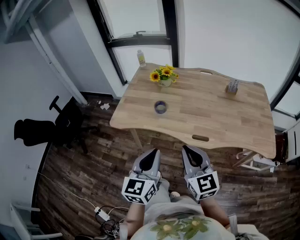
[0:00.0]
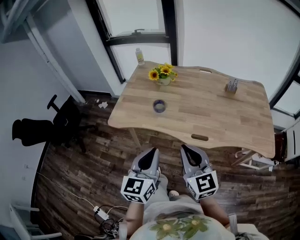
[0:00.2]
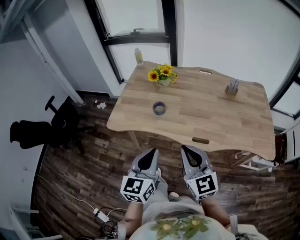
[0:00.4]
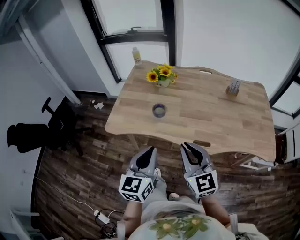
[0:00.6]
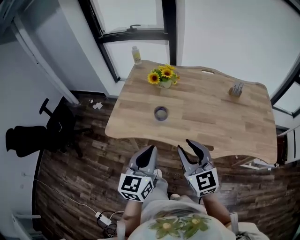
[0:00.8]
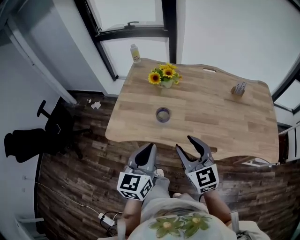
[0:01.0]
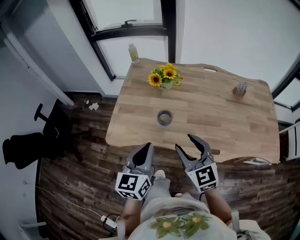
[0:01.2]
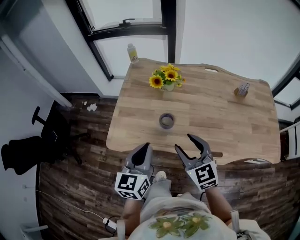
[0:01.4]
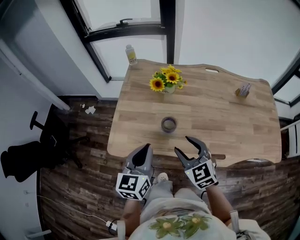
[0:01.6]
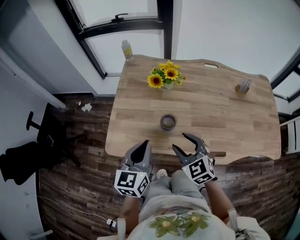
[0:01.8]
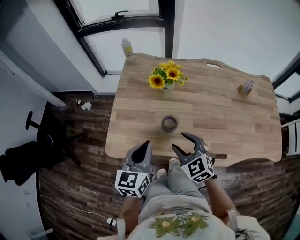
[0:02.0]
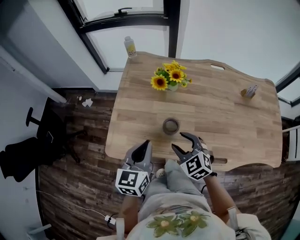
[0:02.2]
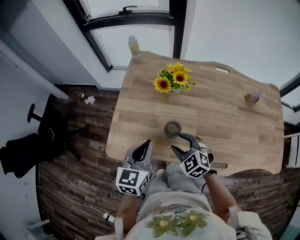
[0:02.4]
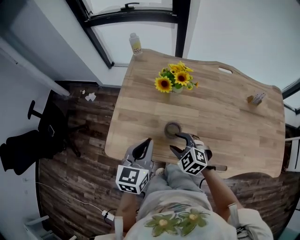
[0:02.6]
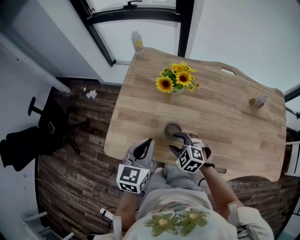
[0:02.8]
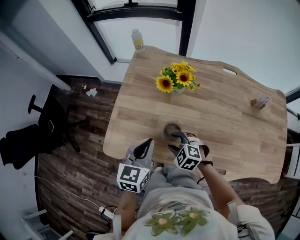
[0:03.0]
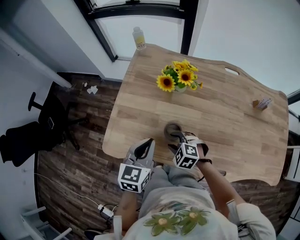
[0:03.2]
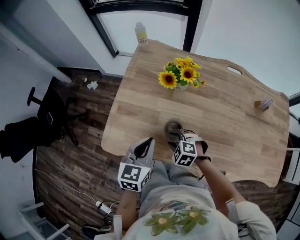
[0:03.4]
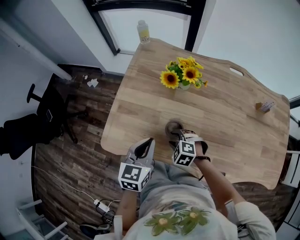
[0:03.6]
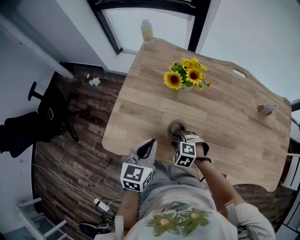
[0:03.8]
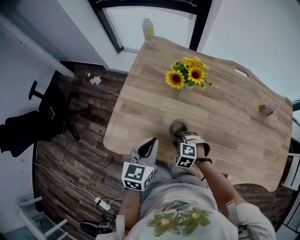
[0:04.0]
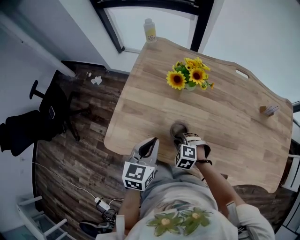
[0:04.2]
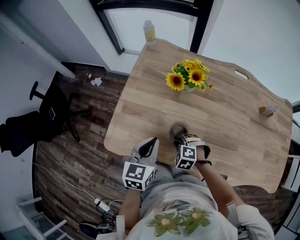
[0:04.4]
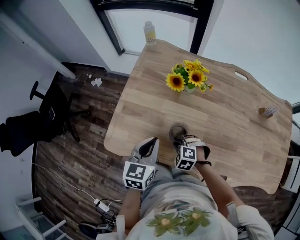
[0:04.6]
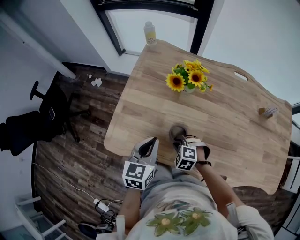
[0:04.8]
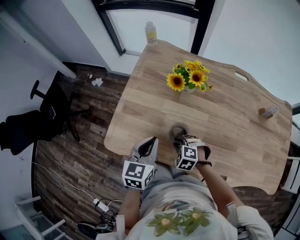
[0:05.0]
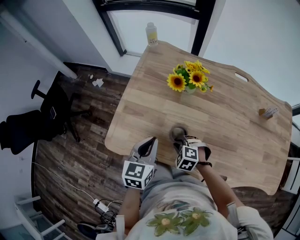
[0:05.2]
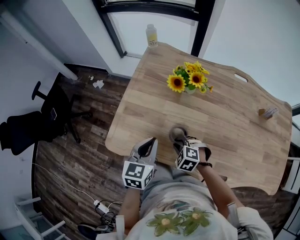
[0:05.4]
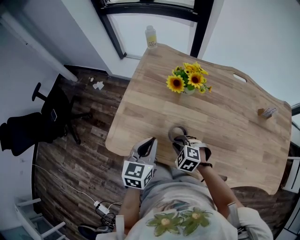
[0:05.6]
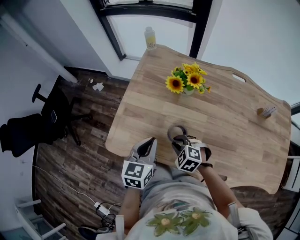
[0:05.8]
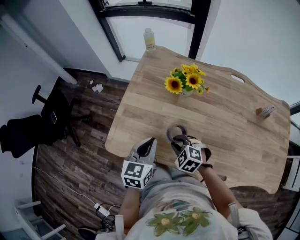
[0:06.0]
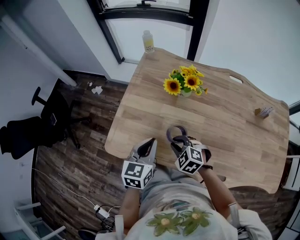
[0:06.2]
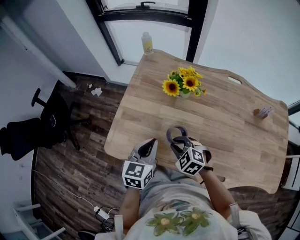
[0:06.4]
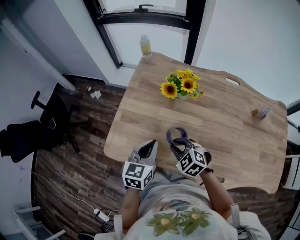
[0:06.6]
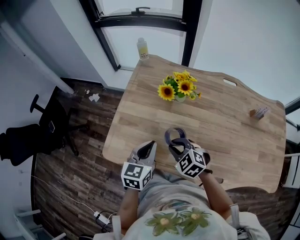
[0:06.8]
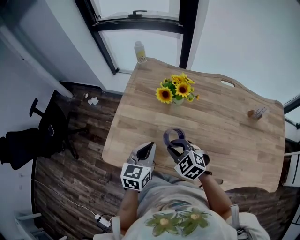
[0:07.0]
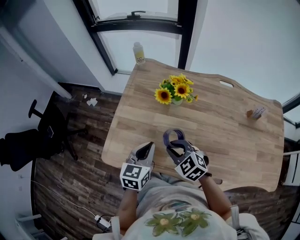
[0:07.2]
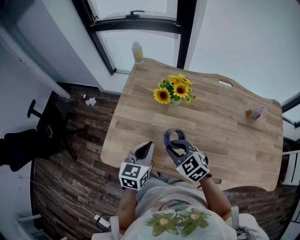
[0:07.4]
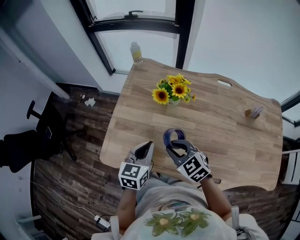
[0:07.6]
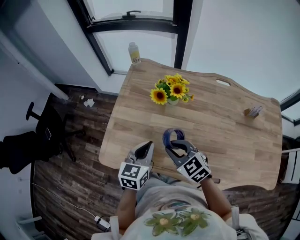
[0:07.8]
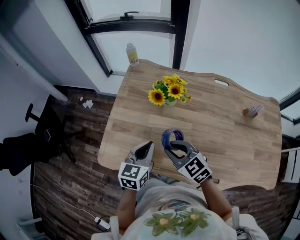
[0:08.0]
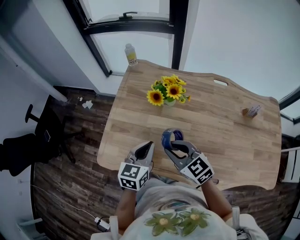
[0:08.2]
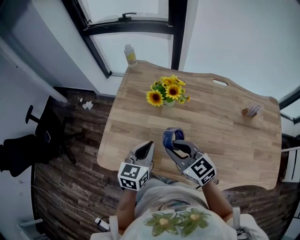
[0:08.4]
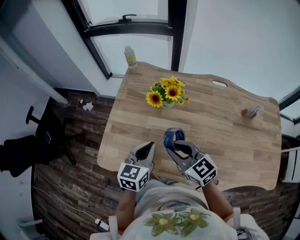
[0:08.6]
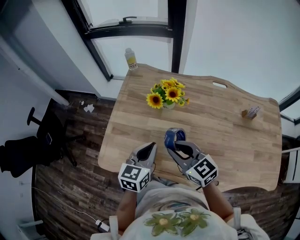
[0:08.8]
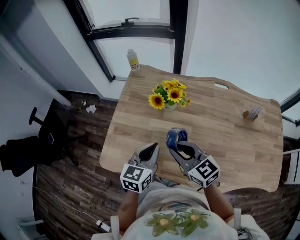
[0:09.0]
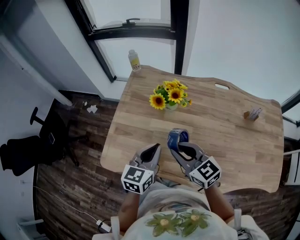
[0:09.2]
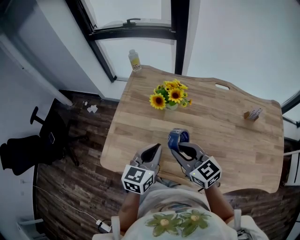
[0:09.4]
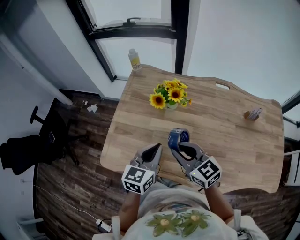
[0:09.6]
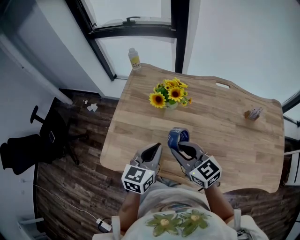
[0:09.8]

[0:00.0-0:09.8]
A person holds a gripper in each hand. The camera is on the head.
0:00.0 to 0:01.4: Both grippers move forward and to the left, roughly 25 cm. The right gripper opens its fingers.
0:01.4 to 0:02.8: The right gripper heads downward and forward, covering about 25 cm, and tips its fingers downward by about 30 degrees. Meanwhile the left gripper heads forward and downward, covering roughly 15 cm.
0:02.8 to 0:04.2: The left gripper travels downward by roughly 5 cm; the right gripper travels downward by some 10 cm, changes its angle by roughly 20 degrees, and closes.
0:04.2 to 0:05.6: The grippers make only small movements.
0:05.6 to 0:07.0: The right gripper moves upward, some 10 cm, and rotates approximately 20 degrees.
0:07.0 to 0:08.4: The right gripper moves upward, roughly 10 cm, and turns by some 30 degrees.
0:08.4 to 0:09.8: There are only small adjustments of the grippers.

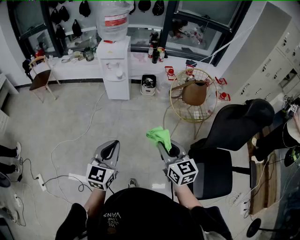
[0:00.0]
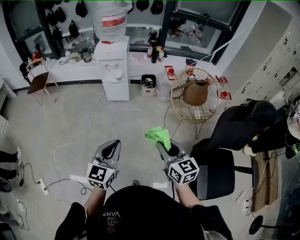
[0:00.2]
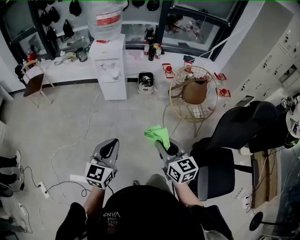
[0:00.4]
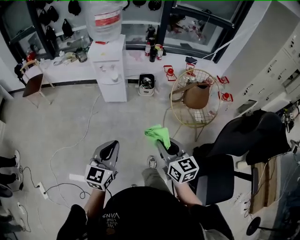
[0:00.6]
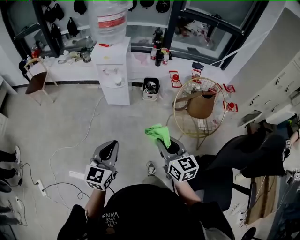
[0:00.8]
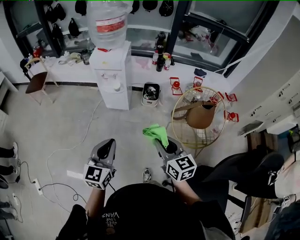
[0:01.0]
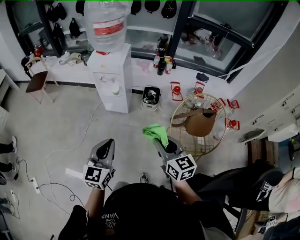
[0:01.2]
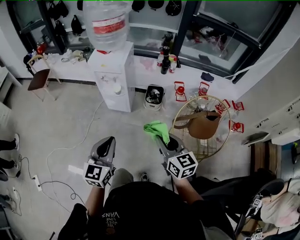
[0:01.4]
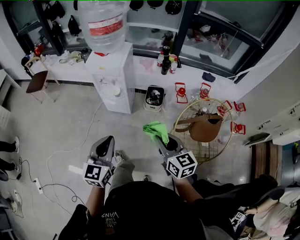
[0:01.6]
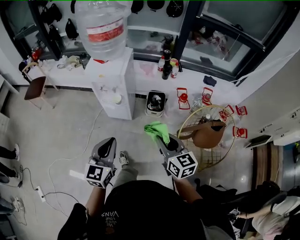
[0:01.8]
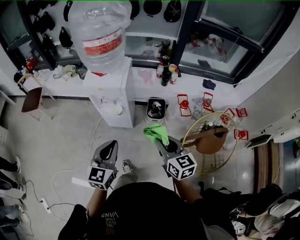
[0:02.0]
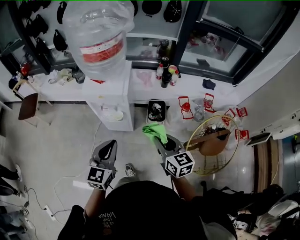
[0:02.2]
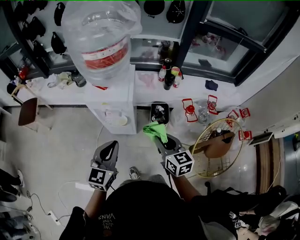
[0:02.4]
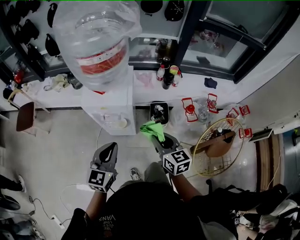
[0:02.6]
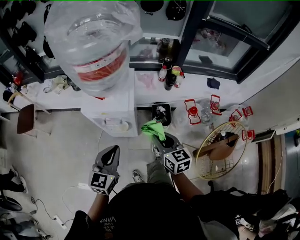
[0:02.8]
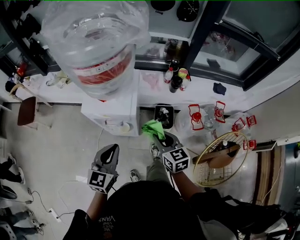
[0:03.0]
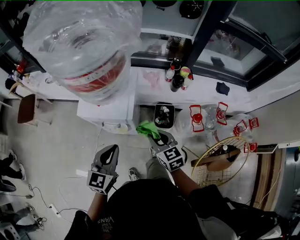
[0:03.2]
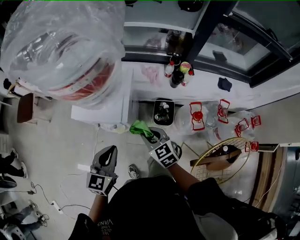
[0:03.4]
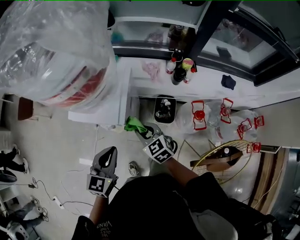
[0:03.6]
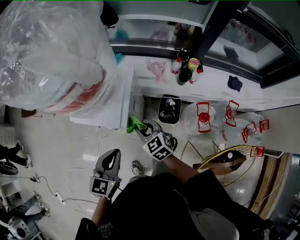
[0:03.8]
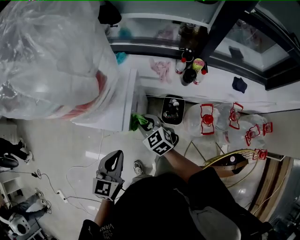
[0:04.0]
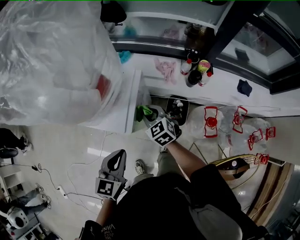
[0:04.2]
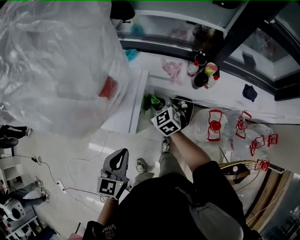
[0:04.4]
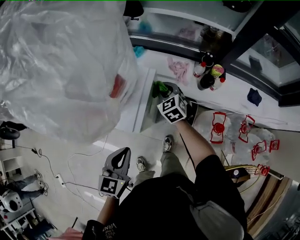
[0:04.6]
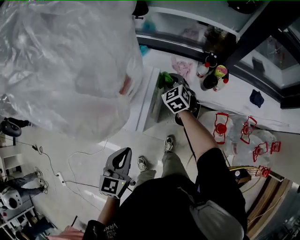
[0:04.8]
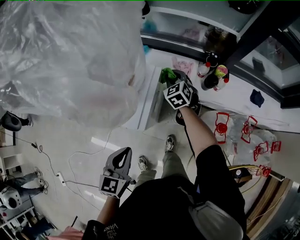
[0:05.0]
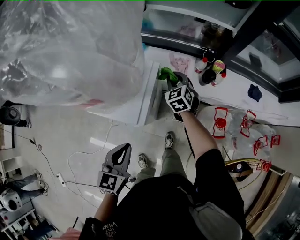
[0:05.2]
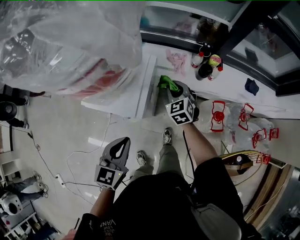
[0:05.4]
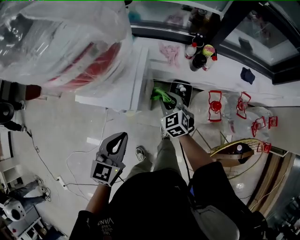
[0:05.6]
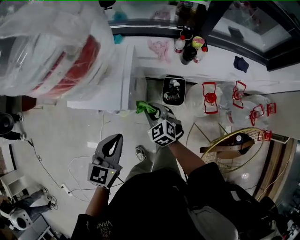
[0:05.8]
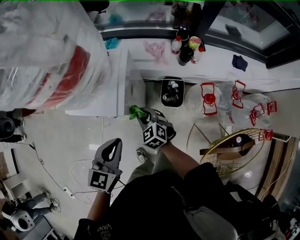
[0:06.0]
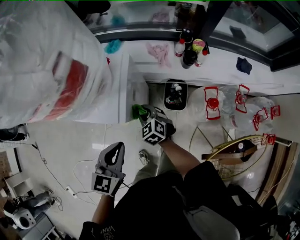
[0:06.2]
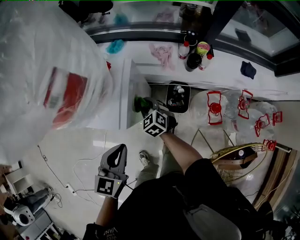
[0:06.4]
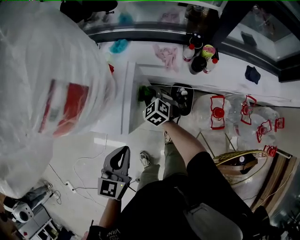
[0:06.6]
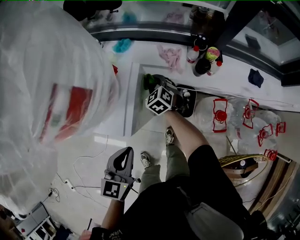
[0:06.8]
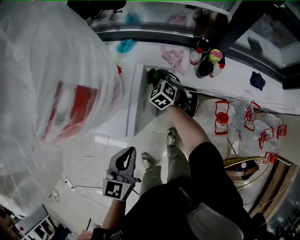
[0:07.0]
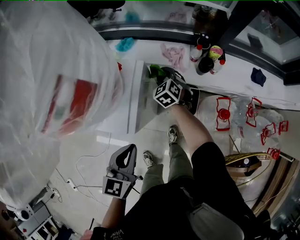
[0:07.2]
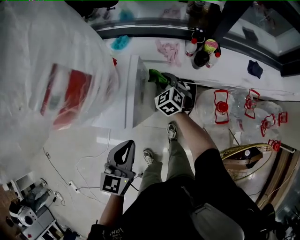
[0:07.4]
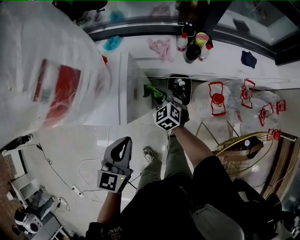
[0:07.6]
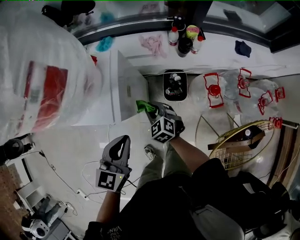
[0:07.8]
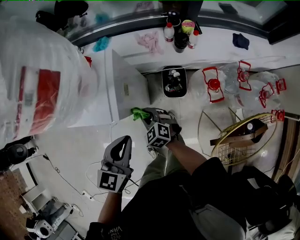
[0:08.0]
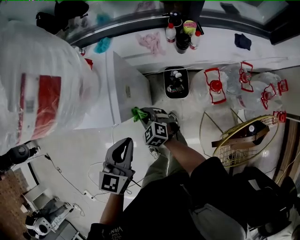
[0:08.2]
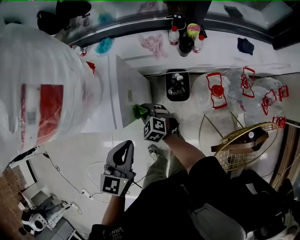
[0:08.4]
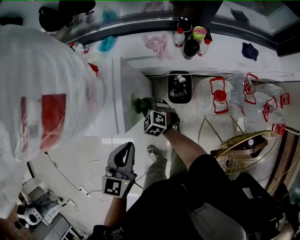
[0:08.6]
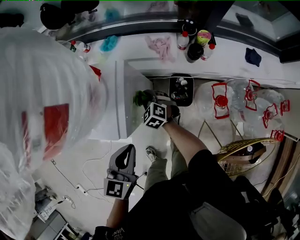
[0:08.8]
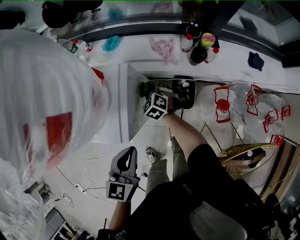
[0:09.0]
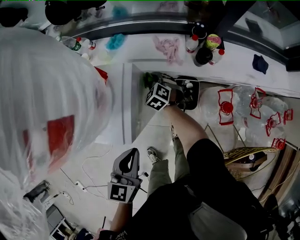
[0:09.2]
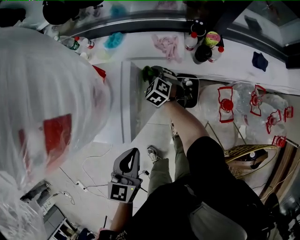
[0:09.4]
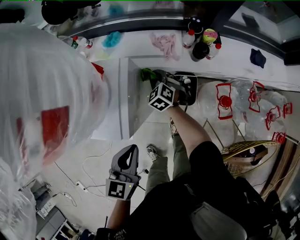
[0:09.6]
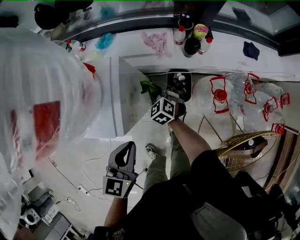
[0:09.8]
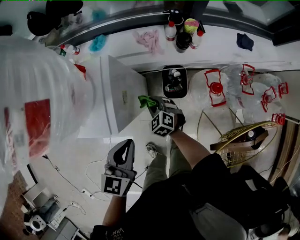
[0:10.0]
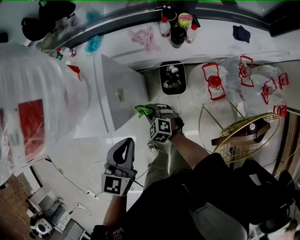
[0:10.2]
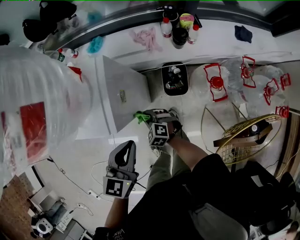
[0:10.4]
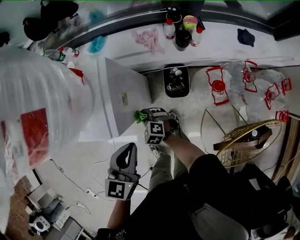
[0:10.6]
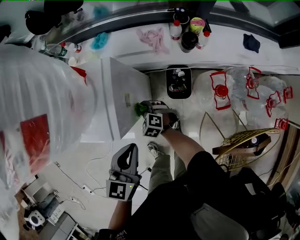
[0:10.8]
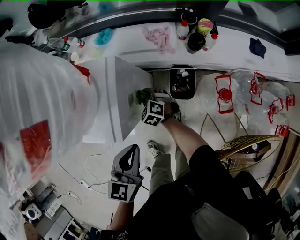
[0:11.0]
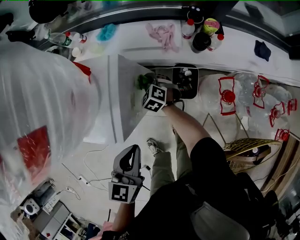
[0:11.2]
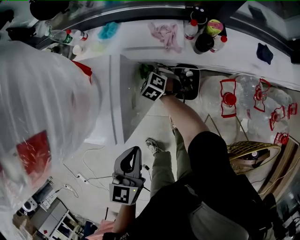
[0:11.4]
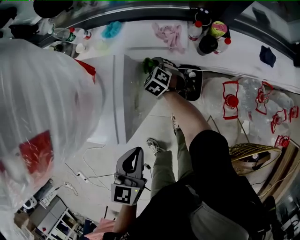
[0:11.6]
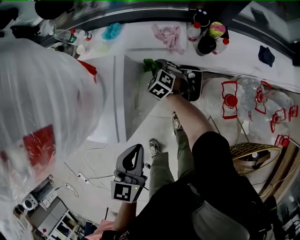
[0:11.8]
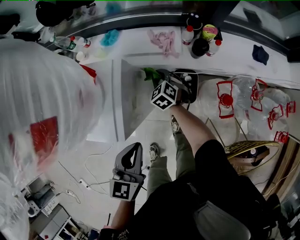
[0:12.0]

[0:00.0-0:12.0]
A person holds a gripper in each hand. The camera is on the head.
0:00.0 to 0:01.6: The grippers both shift forward by approximately 40 cm.
0:01.6 to 0:03.0: Both grippers move forward, some 35 cm.
0:03.0 to 0:04.4: The right gripper heads forward and downward, covering approximately 30 cm, and changes its angle by some 30 degrees. Meanwhile the left gripper goes some 10 cm to the right and forward.
0:04.4 to 0:06.0: The right gripper is displaced backward by about 15 cm.
0:06.0 to 0:07.6: The right gripper moves forward and to the right, some 15 cm.
0:07.6 to 0:09.0: The right gripper is displaced forward and downward by approximately 10 cm.
0:09.0 to 0:10.4: The right gripper heads backward, covering roughly 20 cm.
0:10.4 to 0:12.0: The right gripper moves forward, about 25 cm.

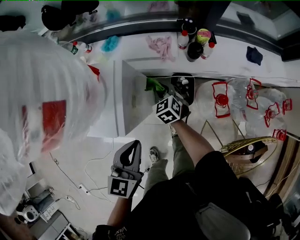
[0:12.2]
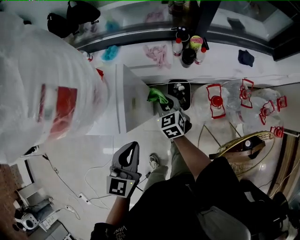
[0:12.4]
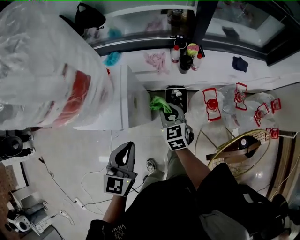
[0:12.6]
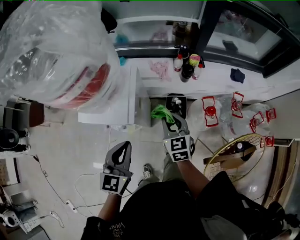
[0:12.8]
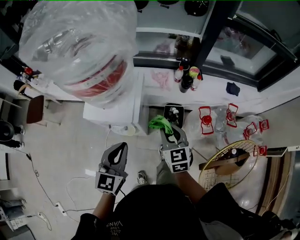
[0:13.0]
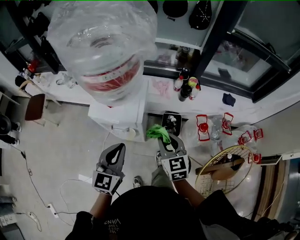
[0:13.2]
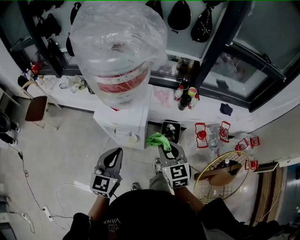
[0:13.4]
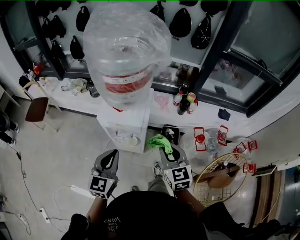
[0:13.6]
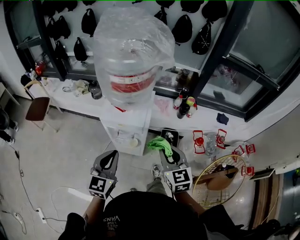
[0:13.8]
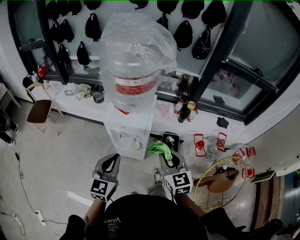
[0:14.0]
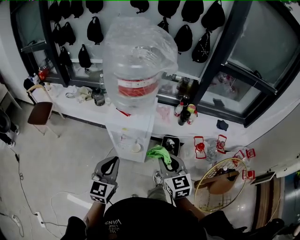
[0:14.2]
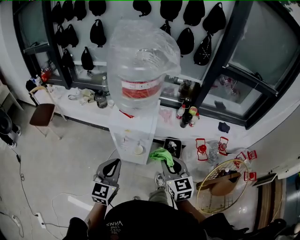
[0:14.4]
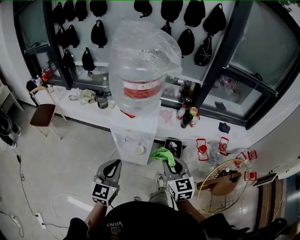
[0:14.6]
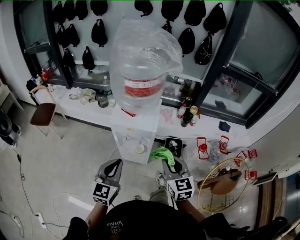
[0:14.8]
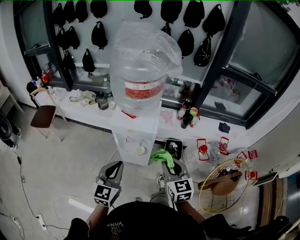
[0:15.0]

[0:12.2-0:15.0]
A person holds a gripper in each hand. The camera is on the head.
0:12.2 to 0:13.6: The right gripper moves upward and backward, some 40 cm, and turns by approximately 20 degrees. The left gripper is displaced to the left, backward and upward by roughly 25 cm.
0:13.6 to 0:15.0: Both grippers travel together backward, about 5 cm.
